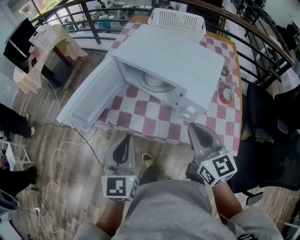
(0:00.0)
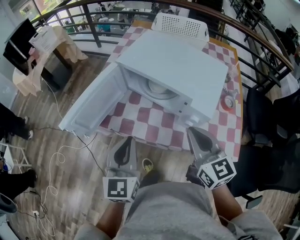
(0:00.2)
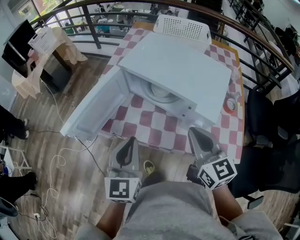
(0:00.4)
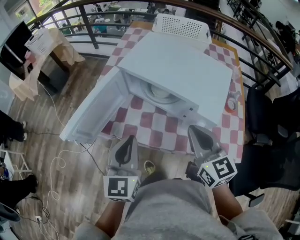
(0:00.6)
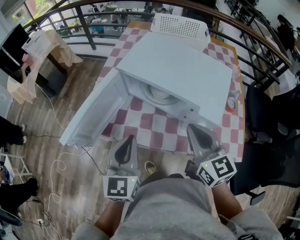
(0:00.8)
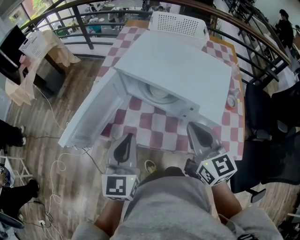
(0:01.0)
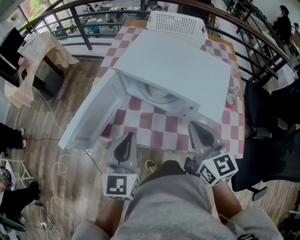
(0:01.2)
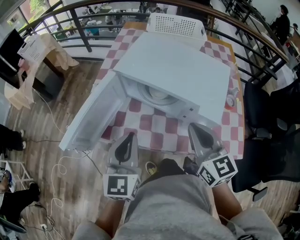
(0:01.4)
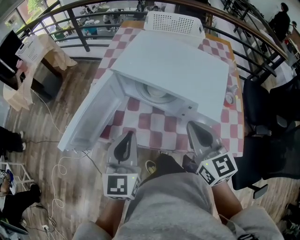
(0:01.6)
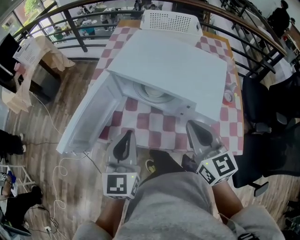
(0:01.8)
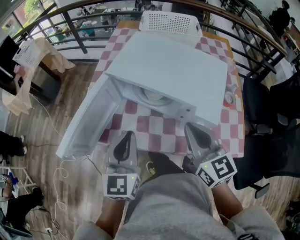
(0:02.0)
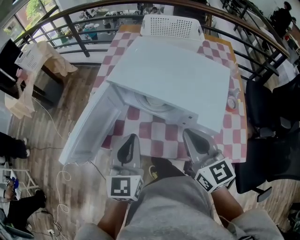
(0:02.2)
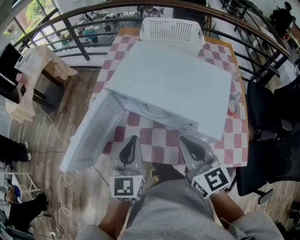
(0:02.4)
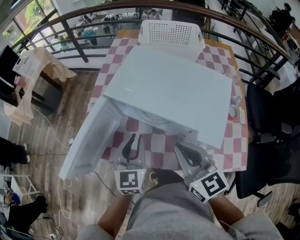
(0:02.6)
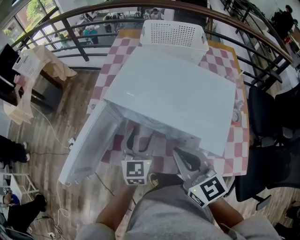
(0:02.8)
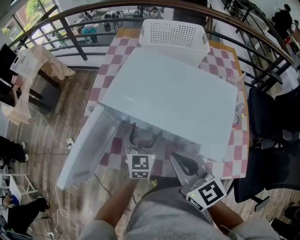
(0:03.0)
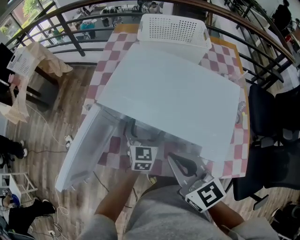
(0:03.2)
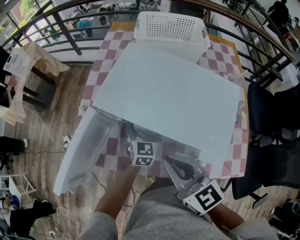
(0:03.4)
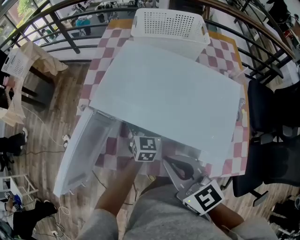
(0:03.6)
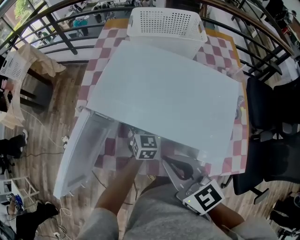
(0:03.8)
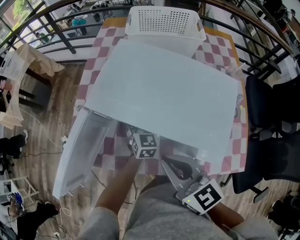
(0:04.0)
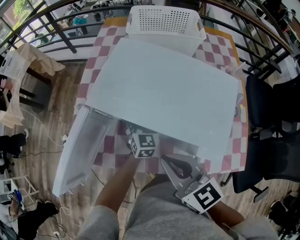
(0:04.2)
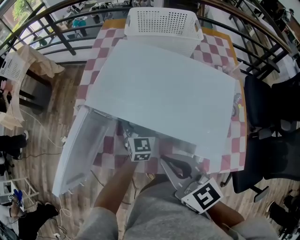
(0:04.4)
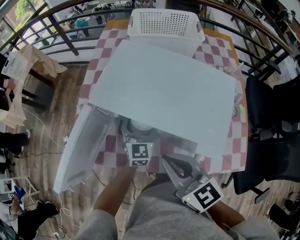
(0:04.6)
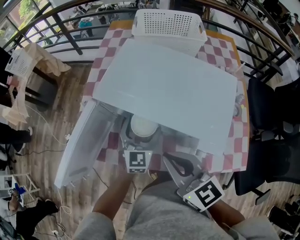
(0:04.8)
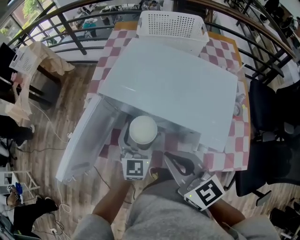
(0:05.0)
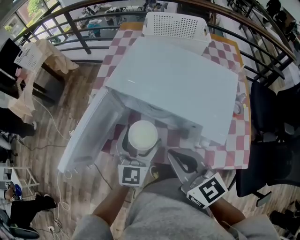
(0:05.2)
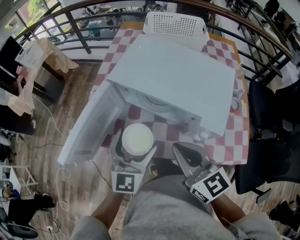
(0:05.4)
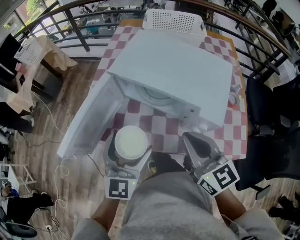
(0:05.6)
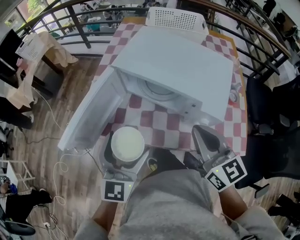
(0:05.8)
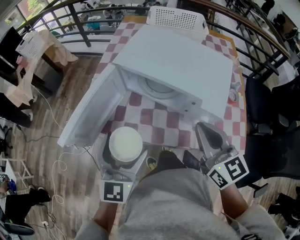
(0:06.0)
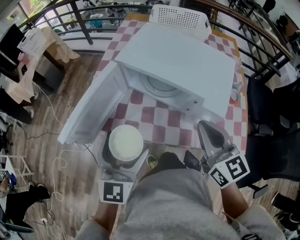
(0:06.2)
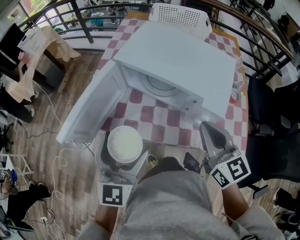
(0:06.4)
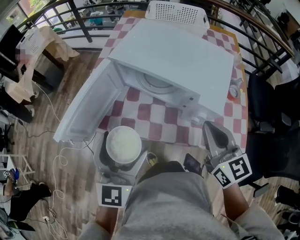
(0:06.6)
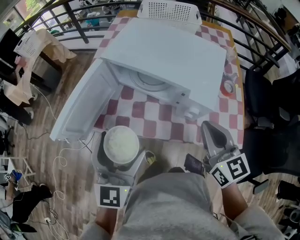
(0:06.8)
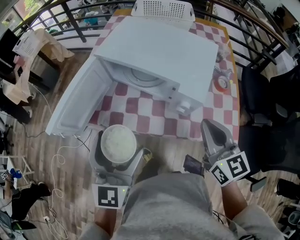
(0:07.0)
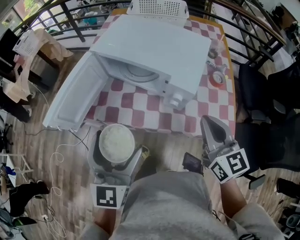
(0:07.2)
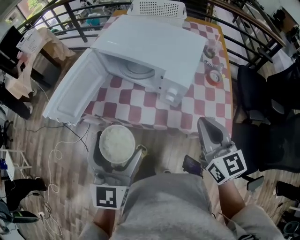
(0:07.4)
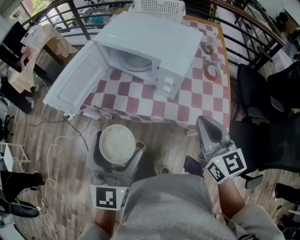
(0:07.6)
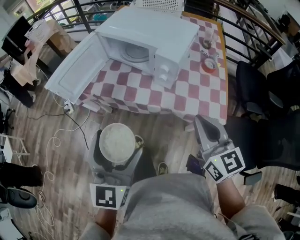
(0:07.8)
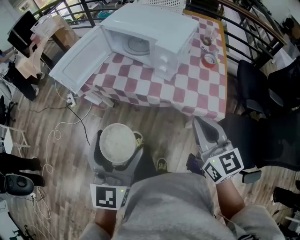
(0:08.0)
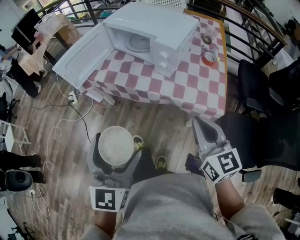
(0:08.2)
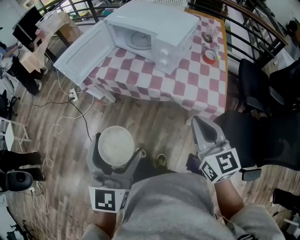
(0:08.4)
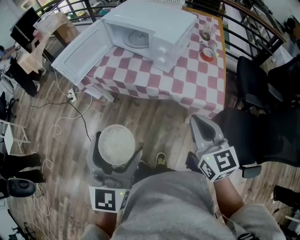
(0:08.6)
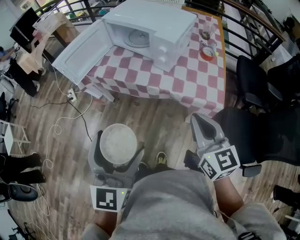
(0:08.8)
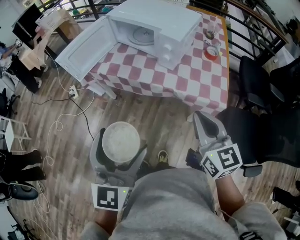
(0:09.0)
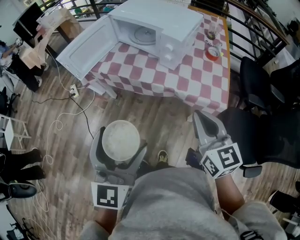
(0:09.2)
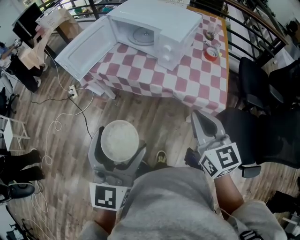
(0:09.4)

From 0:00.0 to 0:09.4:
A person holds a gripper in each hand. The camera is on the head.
From 0:00.0 to 0:01.6: The two grippers go roughly 10 cm forward.
From 0:01.6 to 0:03.2: The left gripper shifts approximately 25 cm forward, downward and to the right, and opens up. The right gripper shifts approximately 5 cm forward.
From 0:03.2 to 0:04.8: There are only small adjustments of the grippers.
From 0:04.8 to 0:06.2: The left gripper is displaced backward, upward and to the left by some 25 cm. The right gripper moves backward and to the right, approximately 10 cm.
From 0:06.2 to 0:07.8: Both grippers move backward and to the right, some 25 cm.
From 0:07.8 to 0:09.4: The two grippers go some 10 cm backward.

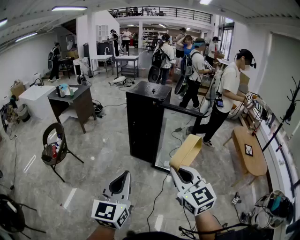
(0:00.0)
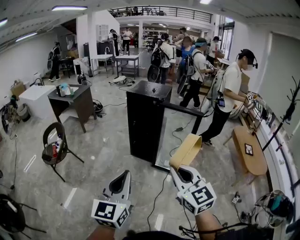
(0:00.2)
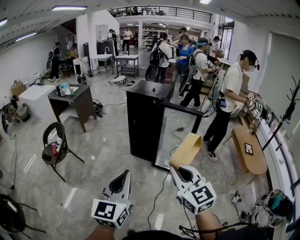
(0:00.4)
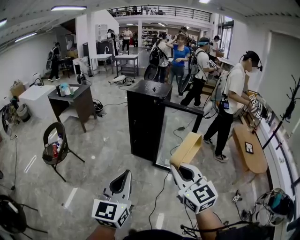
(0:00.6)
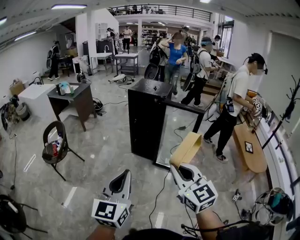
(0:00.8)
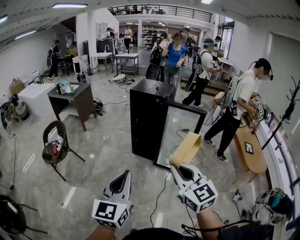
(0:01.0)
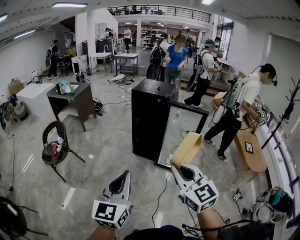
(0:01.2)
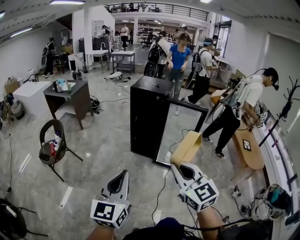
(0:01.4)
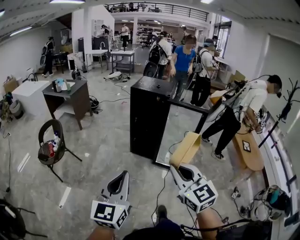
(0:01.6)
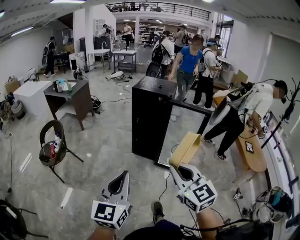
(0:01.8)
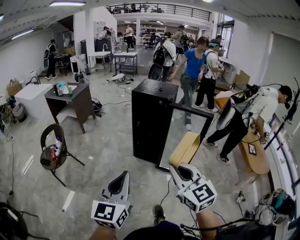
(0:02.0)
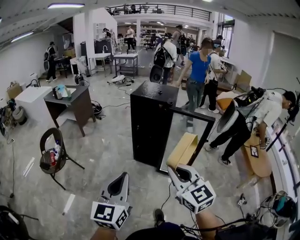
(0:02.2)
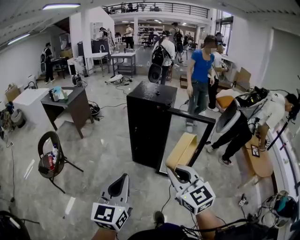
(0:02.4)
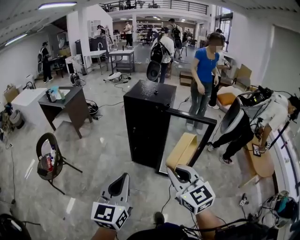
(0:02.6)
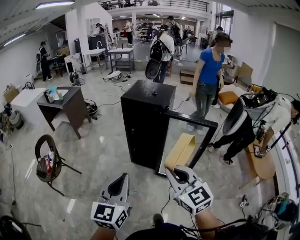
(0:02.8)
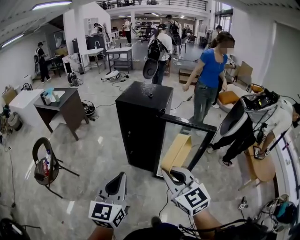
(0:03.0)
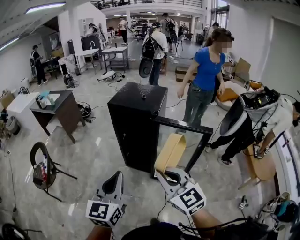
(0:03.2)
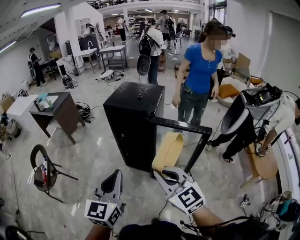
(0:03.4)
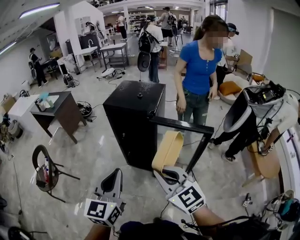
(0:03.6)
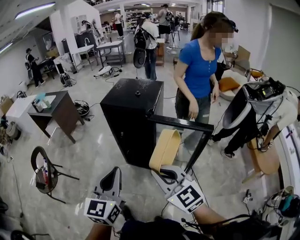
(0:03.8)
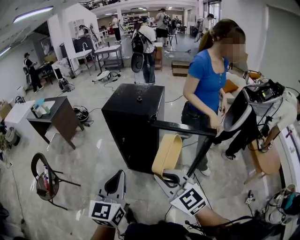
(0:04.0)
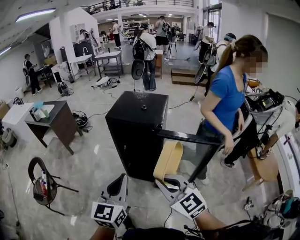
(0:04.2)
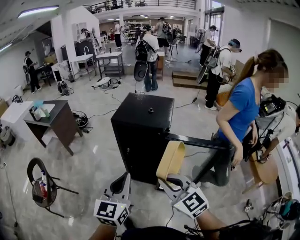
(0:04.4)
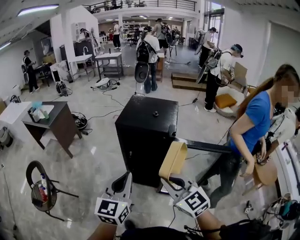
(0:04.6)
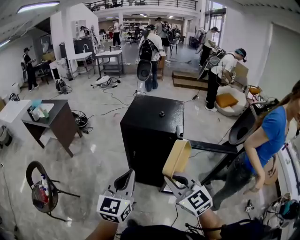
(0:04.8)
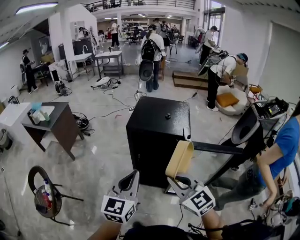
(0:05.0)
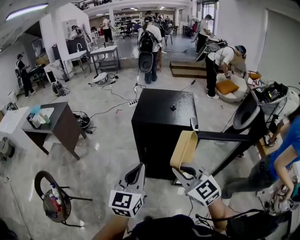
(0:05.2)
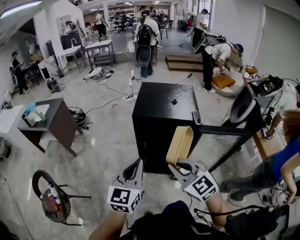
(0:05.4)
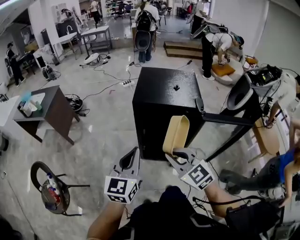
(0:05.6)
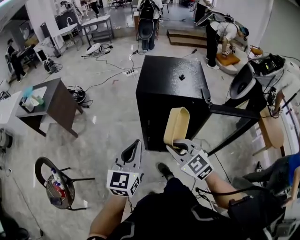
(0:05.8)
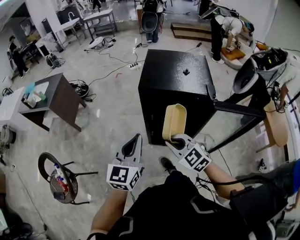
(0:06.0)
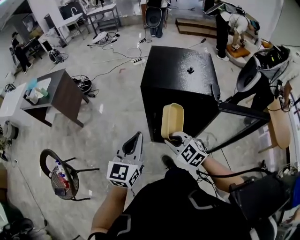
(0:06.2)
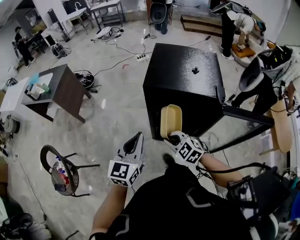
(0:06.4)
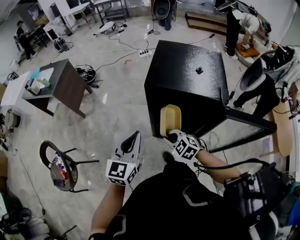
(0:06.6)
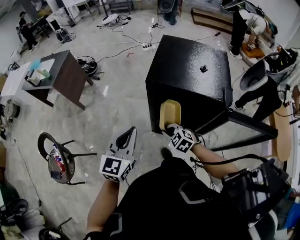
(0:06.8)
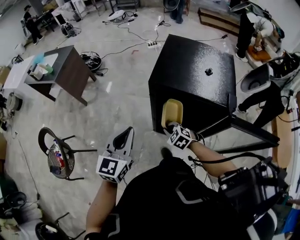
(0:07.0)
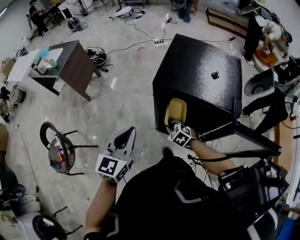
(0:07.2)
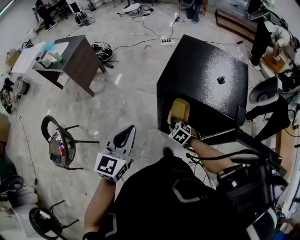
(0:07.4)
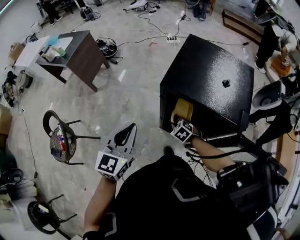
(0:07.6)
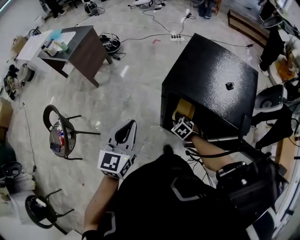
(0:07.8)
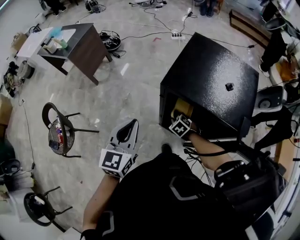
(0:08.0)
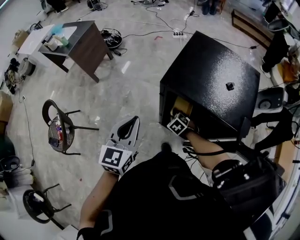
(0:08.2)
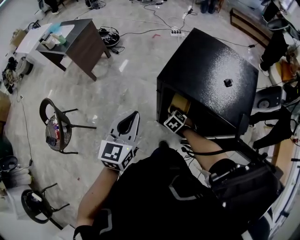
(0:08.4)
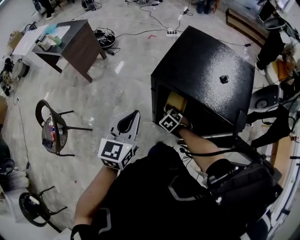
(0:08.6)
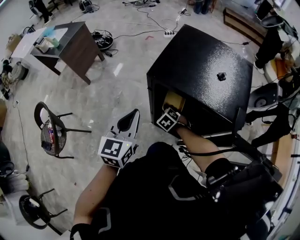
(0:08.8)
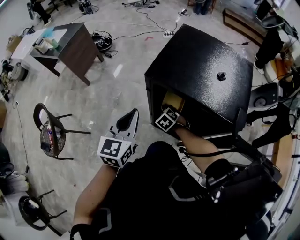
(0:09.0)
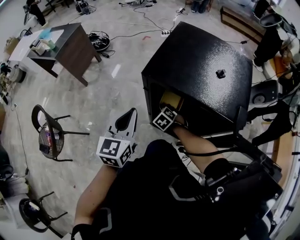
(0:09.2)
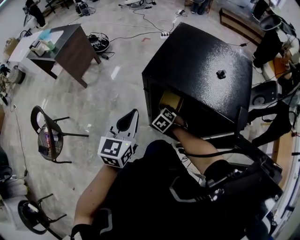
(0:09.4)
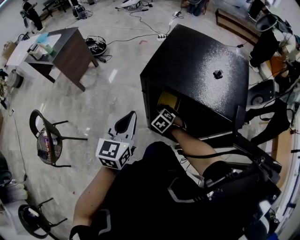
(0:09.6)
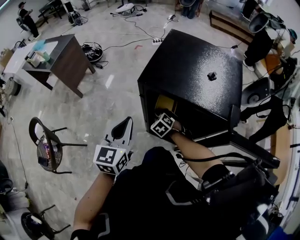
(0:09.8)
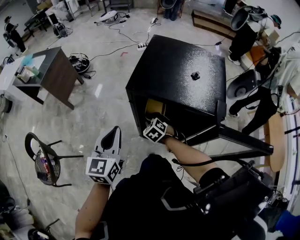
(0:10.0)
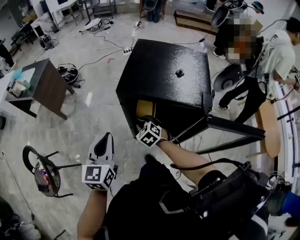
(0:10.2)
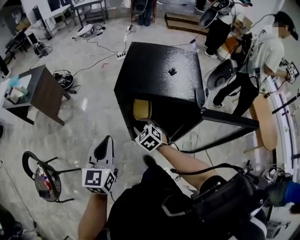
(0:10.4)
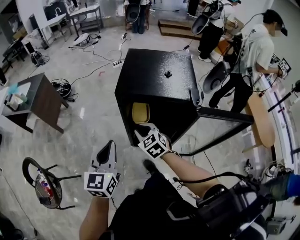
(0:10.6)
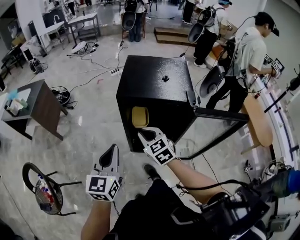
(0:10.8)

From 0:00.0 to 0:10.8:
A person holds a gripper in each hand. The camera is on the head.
From 0:00.0 to 0:01.6: The grippers both shift to the left by about 10 cm.
From 0:01.6 to 0:03.0: The left gripper travels forward and to the right by approximately 30 cm. The right gripper travels forward by some 25 cm.
From 0:03.0 to 0:04.6: Both grippers move forward, some 20 cm.
From 0:04.6 to 0:06.2: The right gripper goes about 30 cm downward, forward and to the left, and changes its angle by approximately 20 degrees. The left gripper shifts some 20 cm forward, to the left and downward.
From 0:06.2 to 0:07.8: The left gripper is displaced forward by about 10 cm, and rotates roughly 20 degrees, while the right gripper is displaced downward and forward by roughly 25 cm, and points its fingers about 30 degrees further downward.
From 0:07.8 to 0:09.2: The right gripper travels forward by approximately 5 cm; the left gripper shifts roughly 10 cm to the right and downward.
From 0:09.2 to 0:10.8: The left gripper travels backward and upward by some 15 cm. Meanwhile the right gripper travels upward and backward by approximately 30 cm, and tilts its fingers some 30 degrees upward.

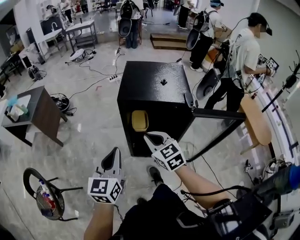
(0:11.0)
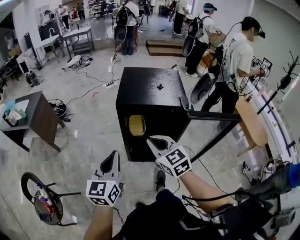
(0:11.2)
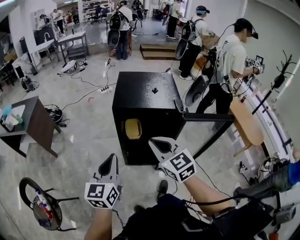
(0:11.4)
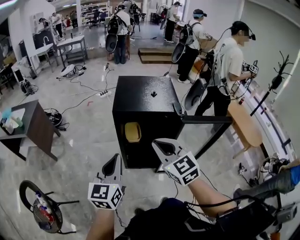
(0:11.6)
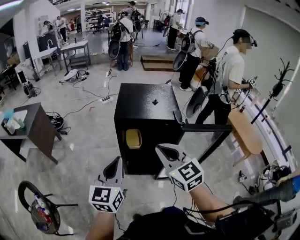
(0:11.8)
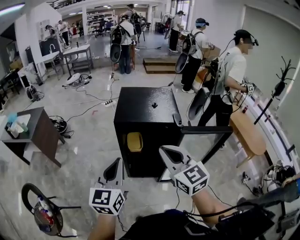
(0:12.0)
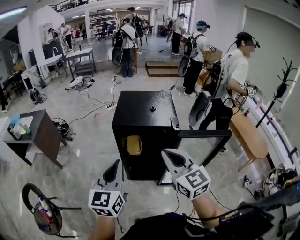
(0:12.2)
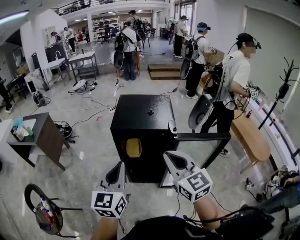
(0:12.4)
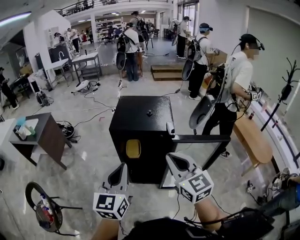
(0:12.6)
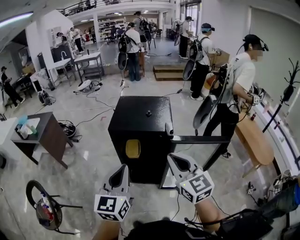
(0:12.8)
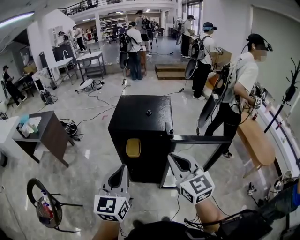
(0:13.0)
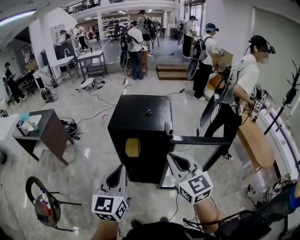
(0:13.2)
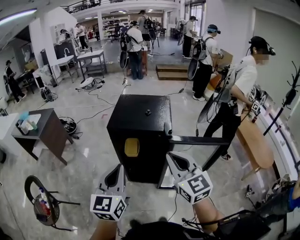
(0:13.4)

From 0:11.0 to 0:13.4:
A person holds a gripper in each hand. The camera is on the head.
From 0:11.0 to 0:12.2: The right gripper moves upward, backward and to the right, about 20 cm, while the left gripper heads upward, covering roughly 10 cm.
From 0:12.2 to 0:13.4: Both grippers travel together to the right, about 5 cm.

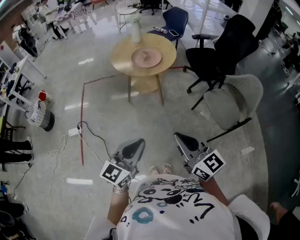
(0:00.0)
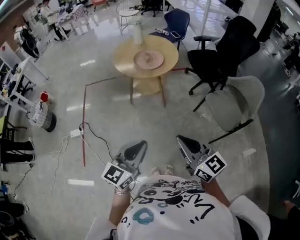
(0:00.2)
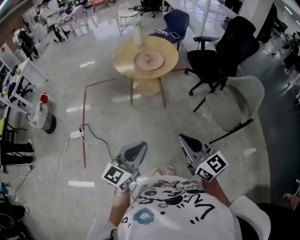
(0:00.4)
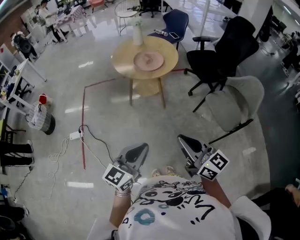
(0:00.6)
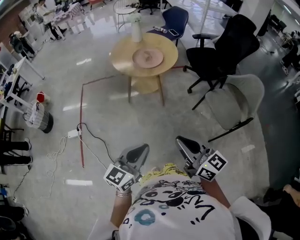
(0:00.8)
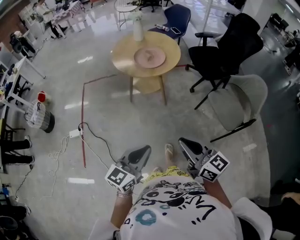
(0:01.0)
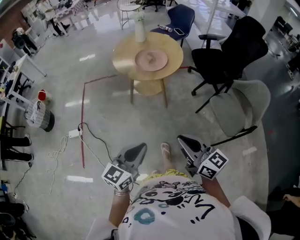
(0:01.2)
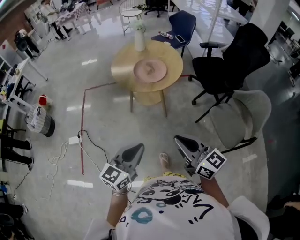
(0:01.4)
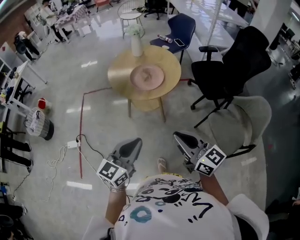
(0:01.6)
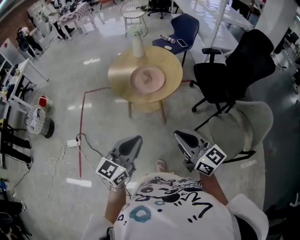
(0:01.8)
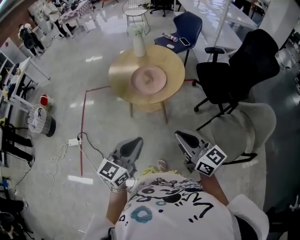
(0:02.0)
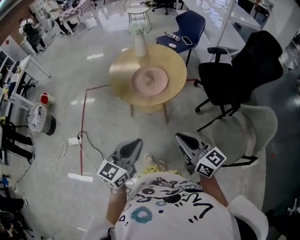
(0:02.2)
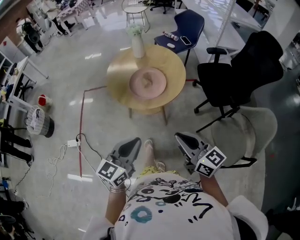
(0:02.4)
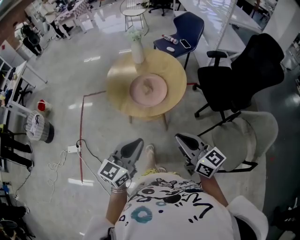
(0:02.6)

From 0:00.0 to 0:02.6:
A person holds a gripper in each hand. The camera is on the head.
From 0:00.0 to 0:01.2: Both grippers travel together forward, roughly 5 cm.
From 0:01.2 to 0:02.6: Both grippers travel together forward, about 30 cm.
